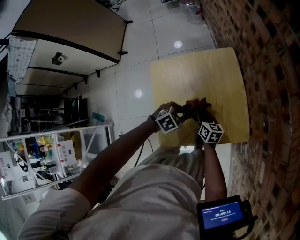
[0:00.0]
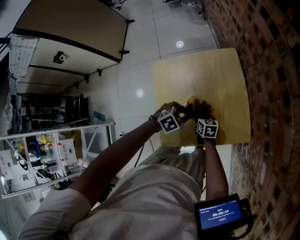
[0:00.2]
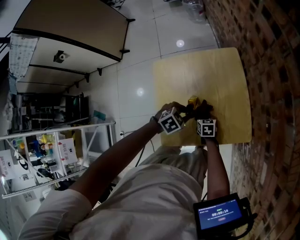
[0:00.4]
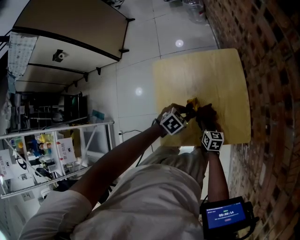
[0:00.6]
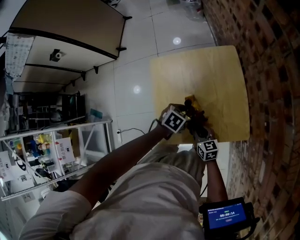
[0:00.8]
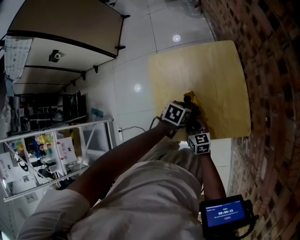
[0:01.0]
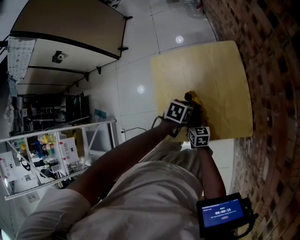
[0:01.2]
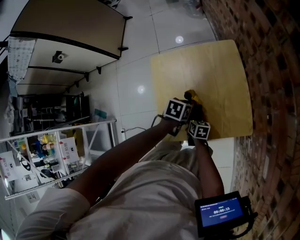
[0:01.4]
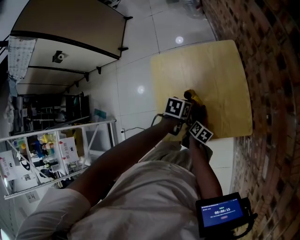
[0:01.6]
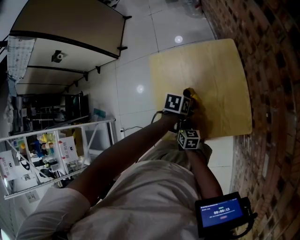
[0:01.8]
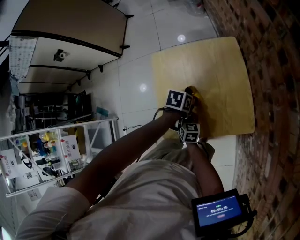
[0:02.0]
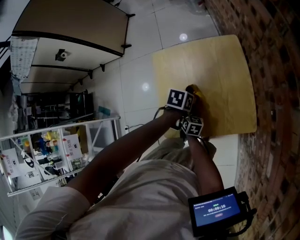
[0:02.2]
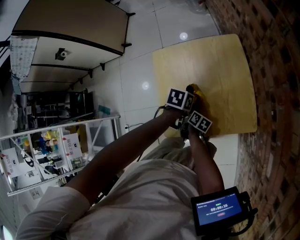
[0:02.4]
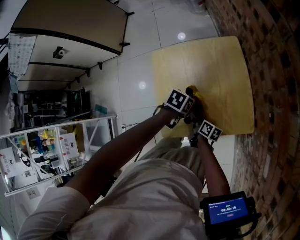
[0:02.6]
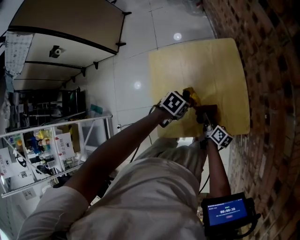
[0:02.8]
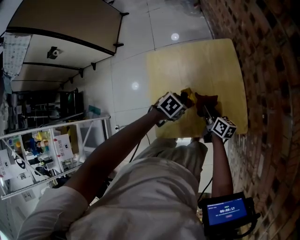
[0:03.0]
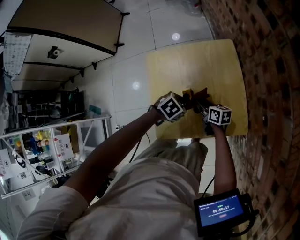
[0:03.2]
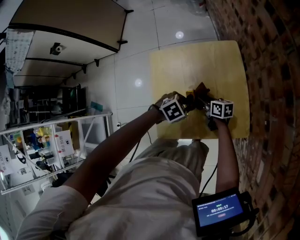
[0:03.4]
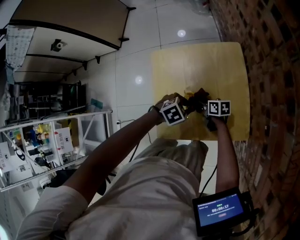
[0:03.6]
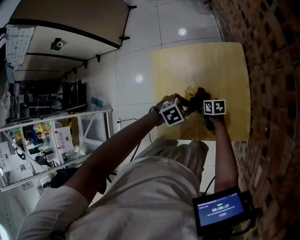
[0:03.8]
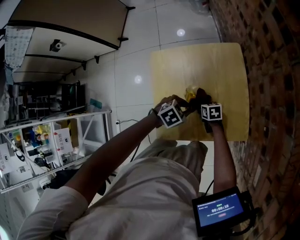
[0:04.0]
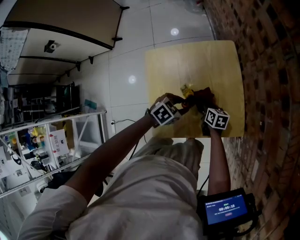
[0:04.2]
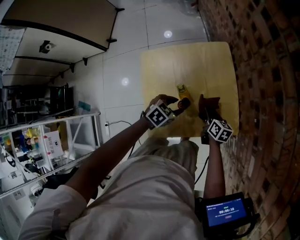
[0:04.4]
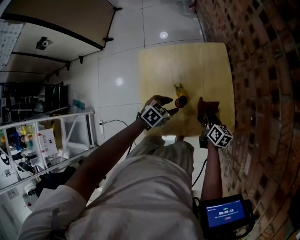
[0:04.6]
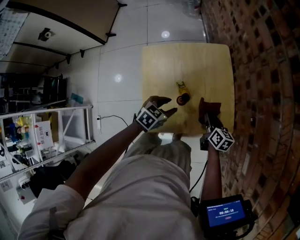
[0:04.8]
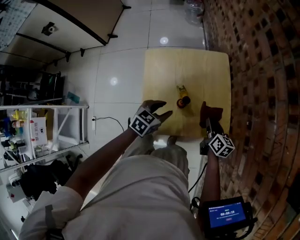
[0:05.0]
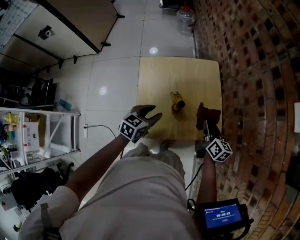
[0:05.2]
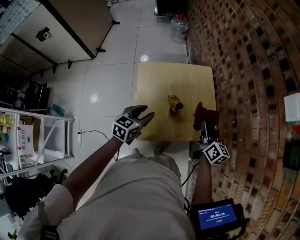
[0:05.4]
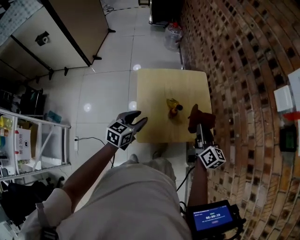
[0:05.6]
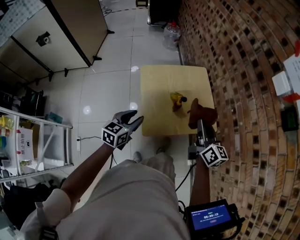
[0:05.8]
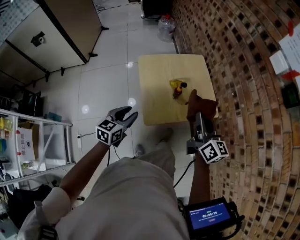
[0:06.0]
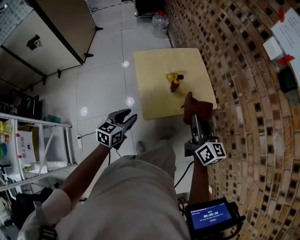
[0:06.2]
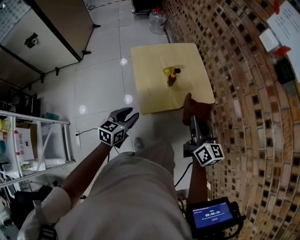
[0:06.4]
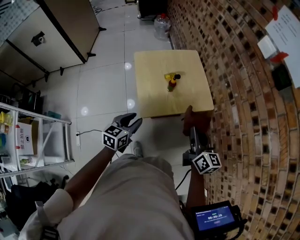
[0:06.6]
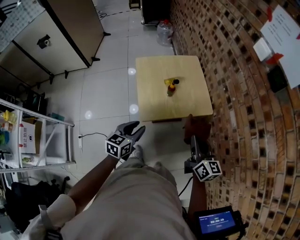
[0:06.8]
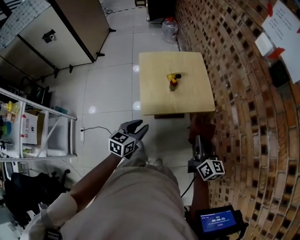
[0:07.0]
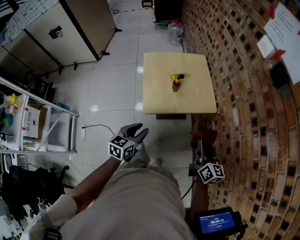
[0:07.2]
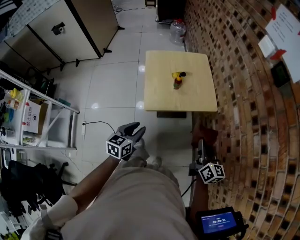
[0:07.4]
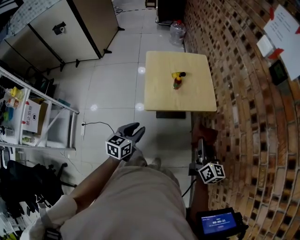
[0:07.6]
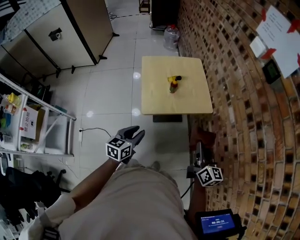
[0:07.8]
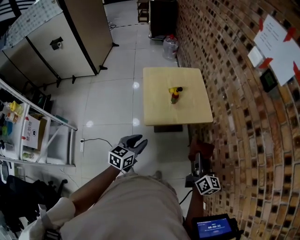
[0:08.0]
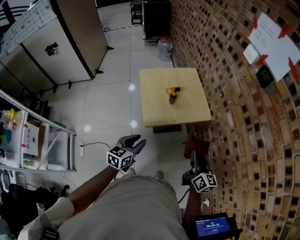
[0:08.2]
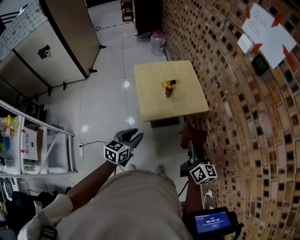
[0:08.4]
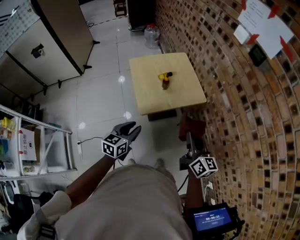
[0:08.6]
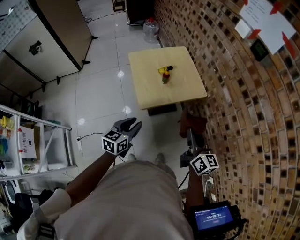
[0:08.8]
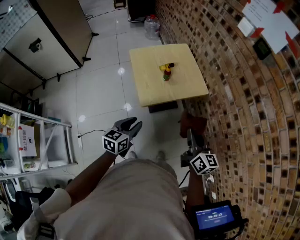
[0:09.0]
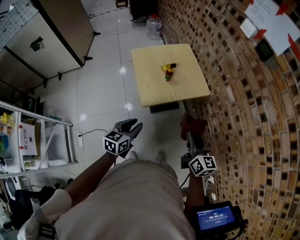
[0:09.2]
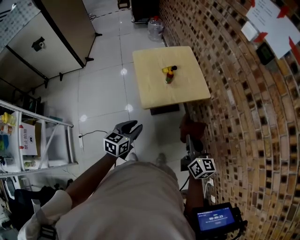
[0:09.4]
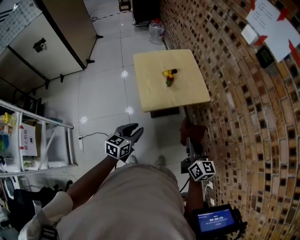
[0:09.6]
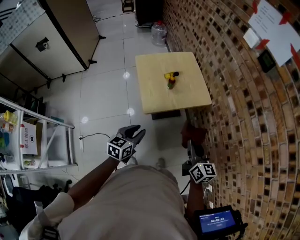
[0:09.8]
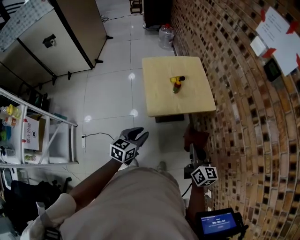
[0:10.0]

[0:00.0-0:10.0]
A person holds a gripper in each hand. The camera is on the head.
0:00.0 to 0:01.4: The right gripper heads backward and downward, covering roughly 10 cm; the left gripper twists some 50 degrees counterclockwise, seen from behind.
0:01.4 to 0:02.8: The right gripper moves to the right, about 10 cm, and rotates about 30 degrees.
0:02.8 to 0:04.2: The right gripper moves about 10 cm, and changes its angle by roughly 30 degrees; the left gripper turns by some 20 degrees.
0:04.2 to 0:05.8: The right gripper moves upward and backward, approximately 40 cm, and points its fingers roughly 30 degrees further upward, while the left gripper moves upward, to the left and backward, about 30 cm, and angles its fingers upward, by approximately 30 degrees.
0:05.8 to 0:07.2: The two grippers go some 25 cm backward and to the right.
0:07.2 to 0:08.6: The right gripper moves to the left, backward and upward, some 15 cm; the left gripper heads to the left, covering roughly 5 cm.
0:08.6 to 0:10.0: The grippers make only small movements.

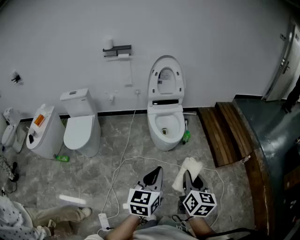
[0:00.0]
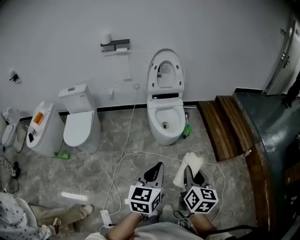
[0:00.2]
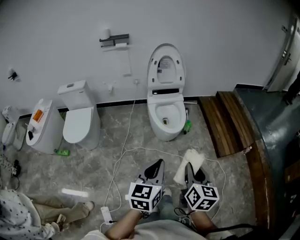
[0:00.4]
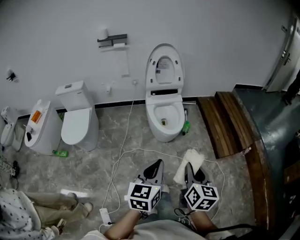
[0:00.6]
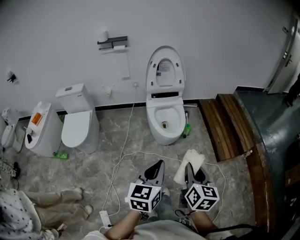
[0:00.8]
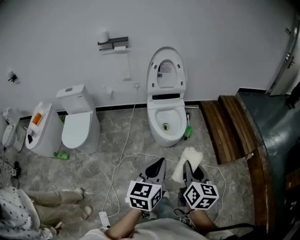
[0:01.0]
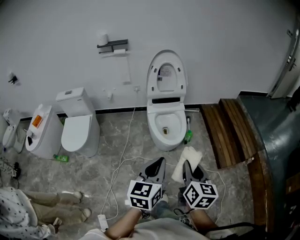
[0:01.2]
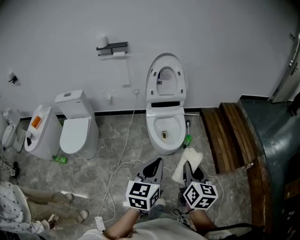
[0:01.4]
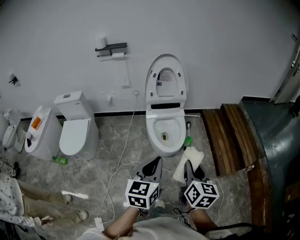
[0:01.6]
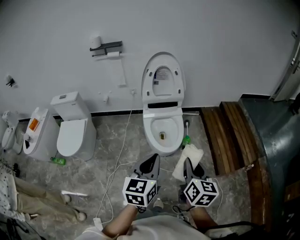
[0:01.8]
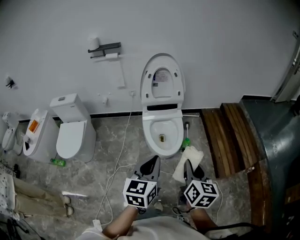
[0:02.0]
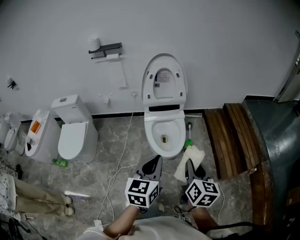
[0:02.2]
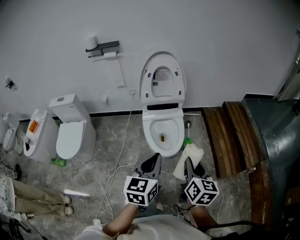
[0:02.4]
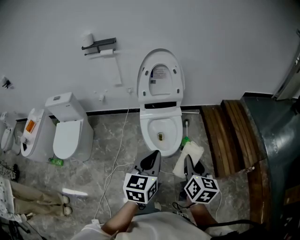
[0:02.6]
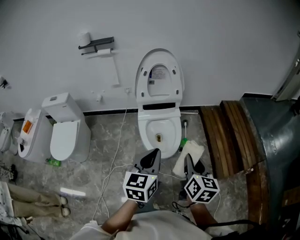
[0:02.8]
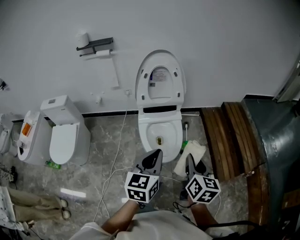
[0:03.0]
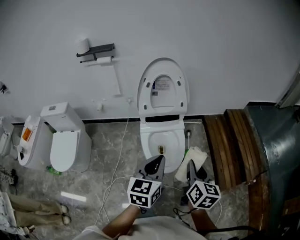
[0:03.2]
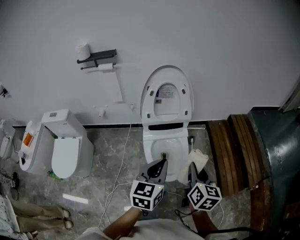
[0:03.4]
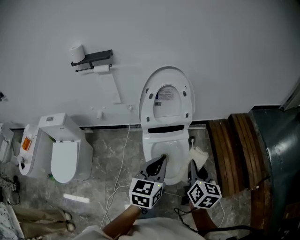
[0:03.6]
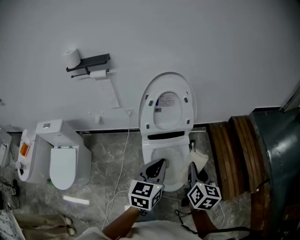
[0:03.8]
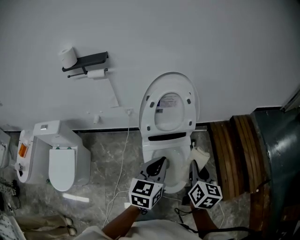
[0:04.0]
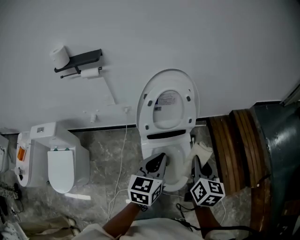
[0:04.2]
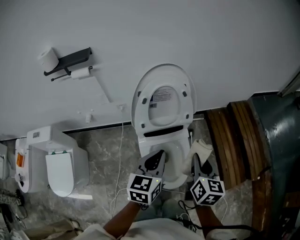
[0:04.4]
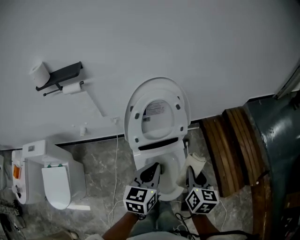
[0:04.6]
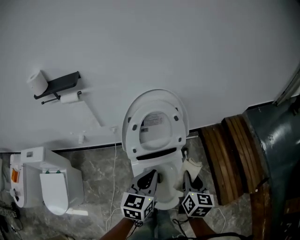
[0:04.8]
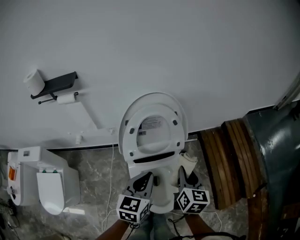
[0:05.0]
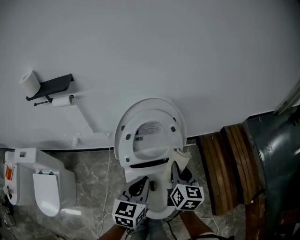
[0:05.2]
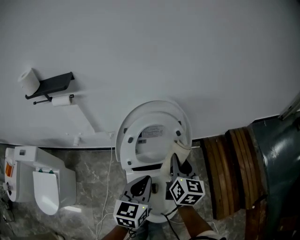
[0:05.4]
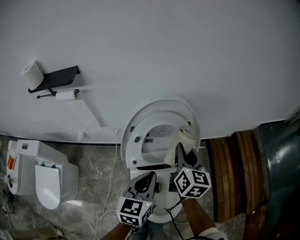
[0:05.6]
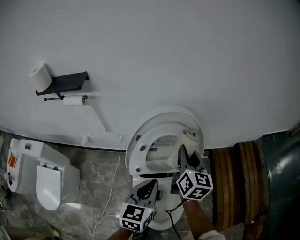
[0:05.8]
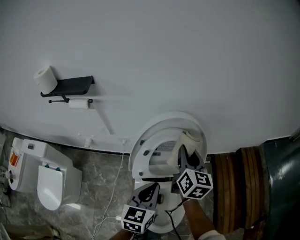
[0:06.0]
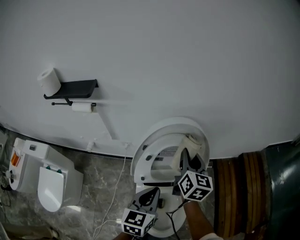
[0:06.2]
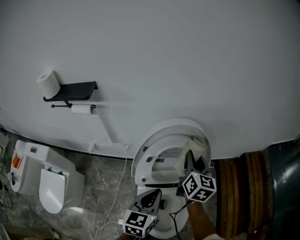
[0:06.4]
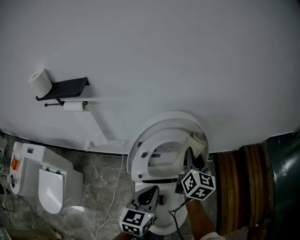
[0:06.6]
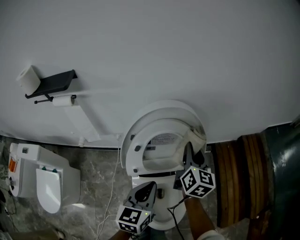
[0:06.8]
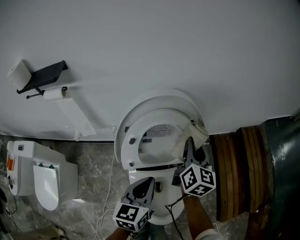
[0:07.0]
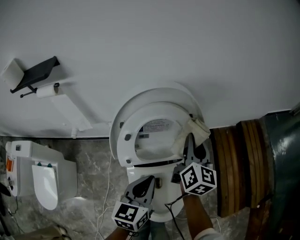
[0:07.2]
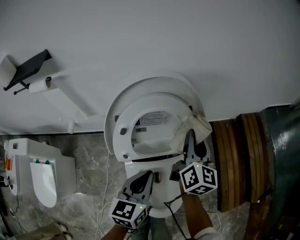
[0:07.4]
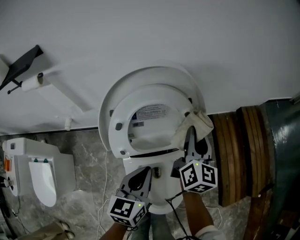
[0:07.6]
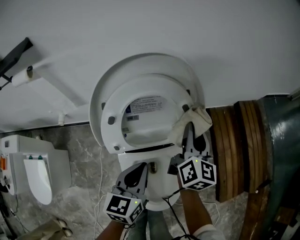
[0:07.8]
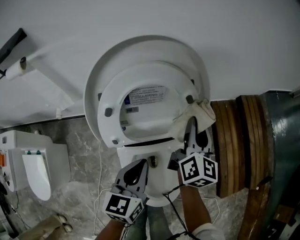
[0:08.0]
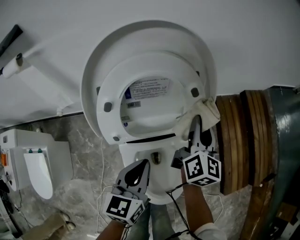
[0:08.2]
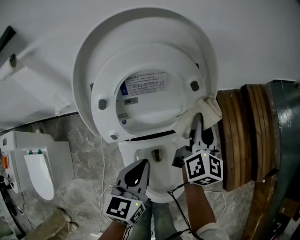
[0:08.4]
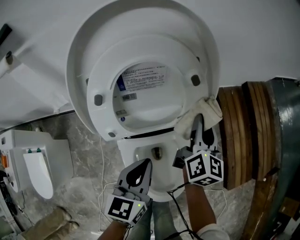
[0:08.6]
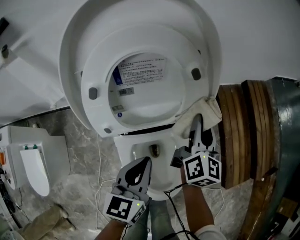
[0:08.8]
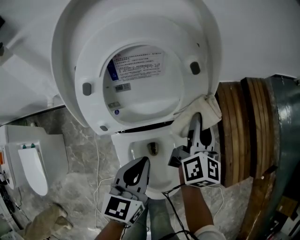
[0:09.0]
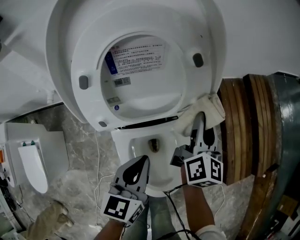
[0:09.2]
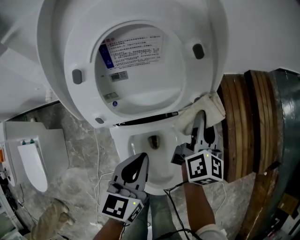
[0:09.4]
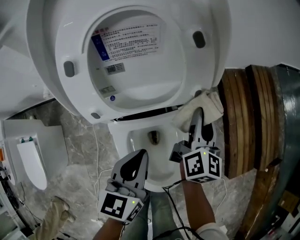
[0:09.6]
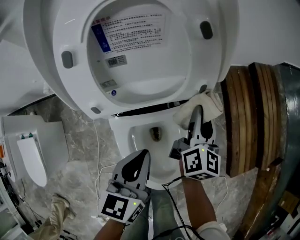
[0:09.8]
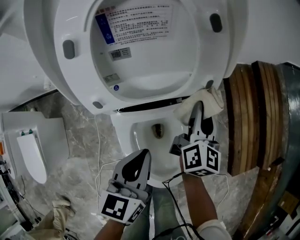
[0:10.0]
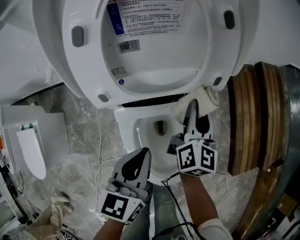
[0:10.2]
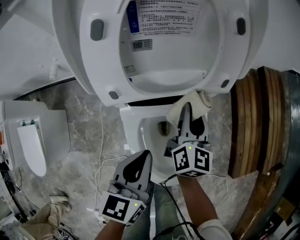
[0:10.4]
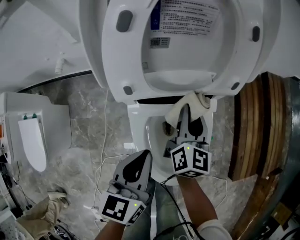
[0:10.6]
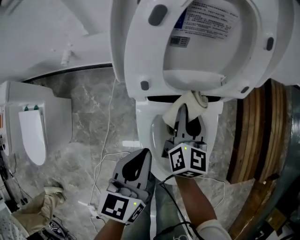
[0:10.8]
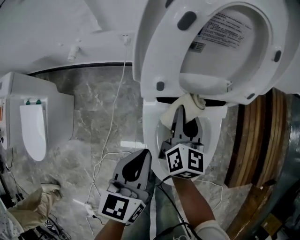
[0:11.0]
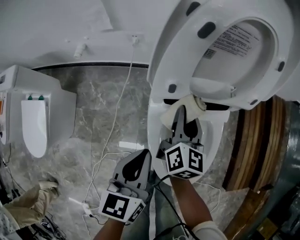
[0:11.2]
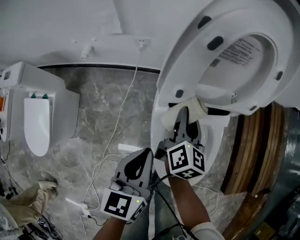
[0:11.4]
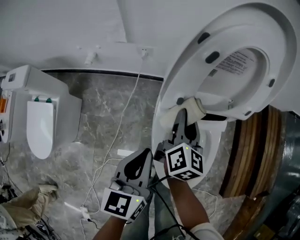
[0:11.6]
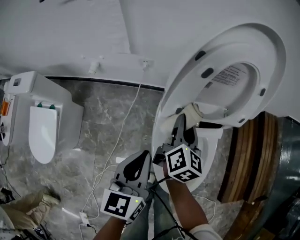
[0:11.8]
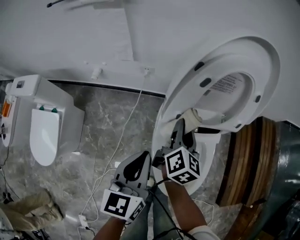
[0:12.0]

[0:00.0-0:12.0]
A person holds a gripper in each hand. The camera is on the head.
0:00.0 to 0:01.6: The grippers both shift forward by about 20 cm.
0:01.6 to 0:03.0: Both grippers move forward, some 20 cm.
0:03.0 to 0:04.4: Both grippers travel together forward, about 25 cm.
0:04.4 to 0:06.0: The left gripper heads forward, covering approximately 15 cm; the right gripper heads forward, covering about 30 cm.
0:06.0 to 0:07.6: The left gripper is displaced downward by roughly 10 cm. Meanwhile the right gripper moves downward and to the right, some 15 cm.
0:07.6 to 0:09.0: The grippers both shift downward by roughly 10 cm.
0:09.0 to 0:10.4: The right gripper shifts roughly 15 cm downward, to the left and backward, while the left gripper travels backward by roughly 5 cm.
0:10.4 to 0:12.0: Both grippers move to the left and upward, roughly 20 cm.

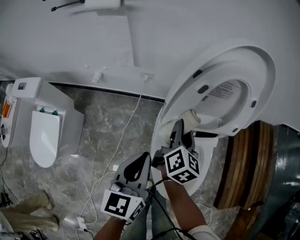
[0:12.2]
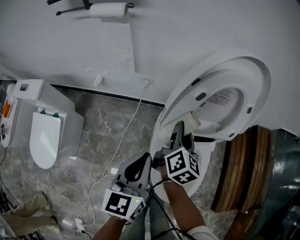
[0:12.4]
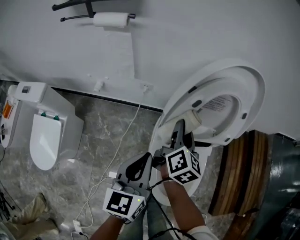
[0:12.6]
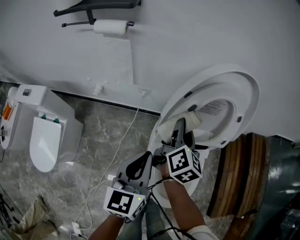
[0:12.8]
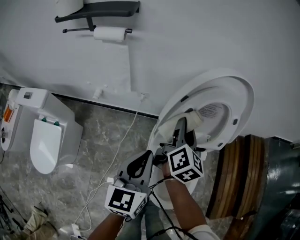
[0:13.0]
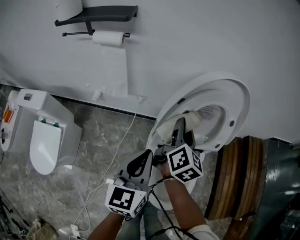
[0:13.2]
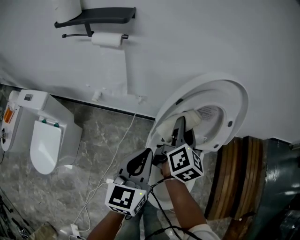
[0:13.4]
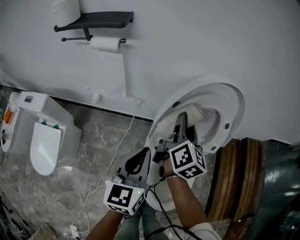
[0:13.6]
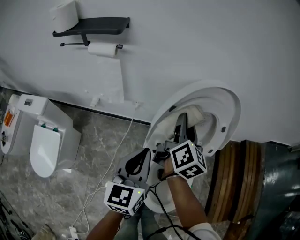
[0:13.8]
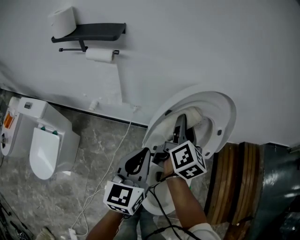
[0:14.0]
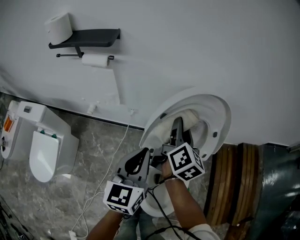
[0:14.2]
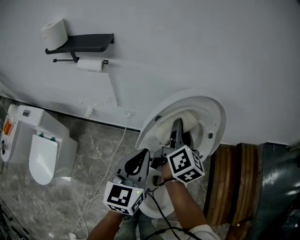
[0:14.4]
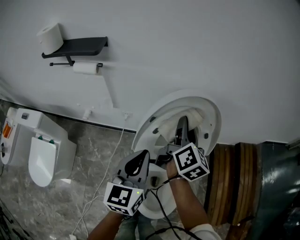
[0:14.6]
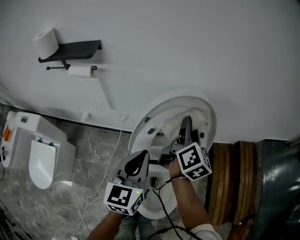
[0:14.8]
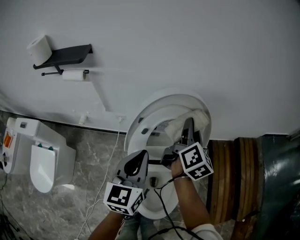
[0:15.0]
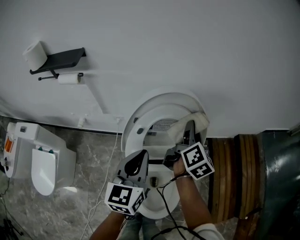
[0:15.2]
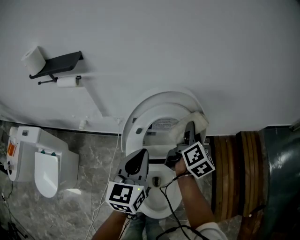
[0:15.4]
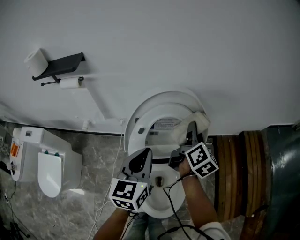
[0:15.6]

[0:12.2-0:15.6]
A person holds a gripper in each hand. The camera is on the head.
0:12.2 to 0:13.8: The left gripper travels upward and forward by approximately 15 cm; the right gripper travels upward and forward by some 20 cm.
0:13.8 to 0:15.6: The left gripper shifts approximately 15 cm to the right and forward, while the right gripper moves to the right, some 20 cm.
